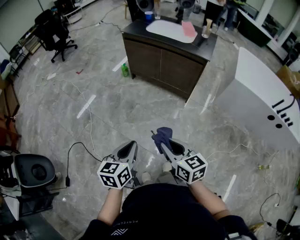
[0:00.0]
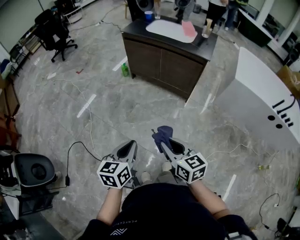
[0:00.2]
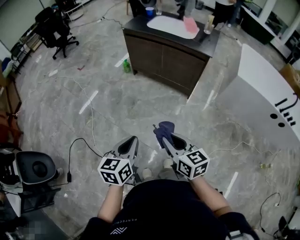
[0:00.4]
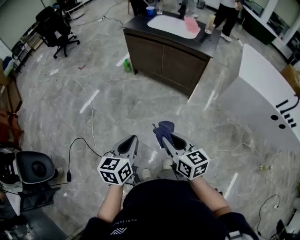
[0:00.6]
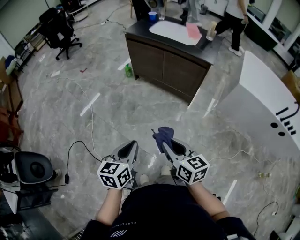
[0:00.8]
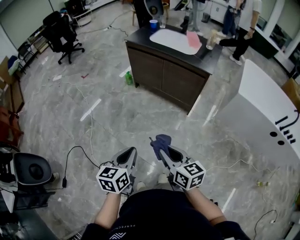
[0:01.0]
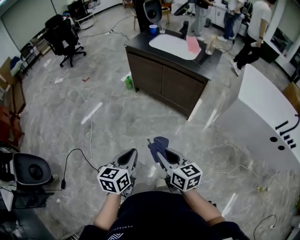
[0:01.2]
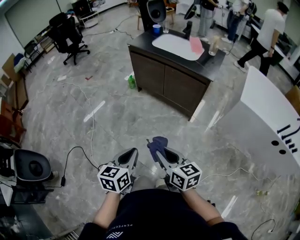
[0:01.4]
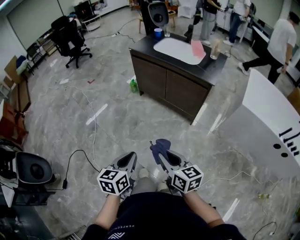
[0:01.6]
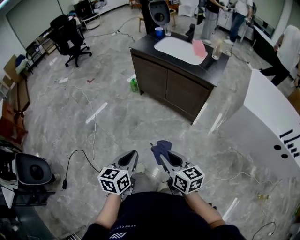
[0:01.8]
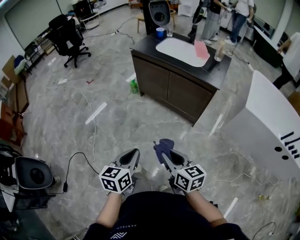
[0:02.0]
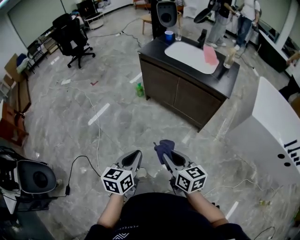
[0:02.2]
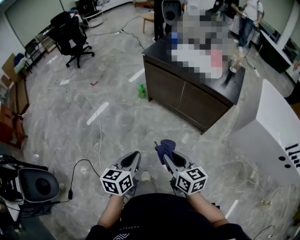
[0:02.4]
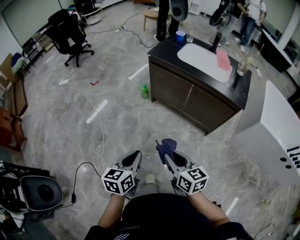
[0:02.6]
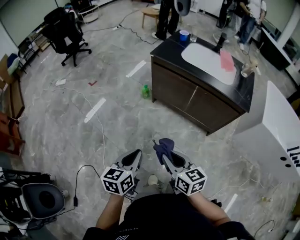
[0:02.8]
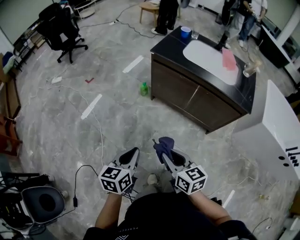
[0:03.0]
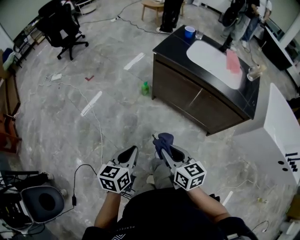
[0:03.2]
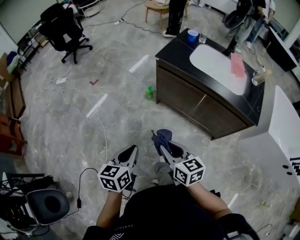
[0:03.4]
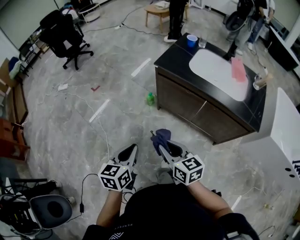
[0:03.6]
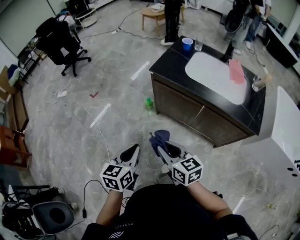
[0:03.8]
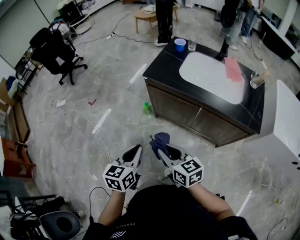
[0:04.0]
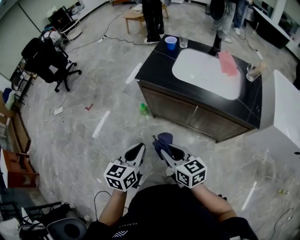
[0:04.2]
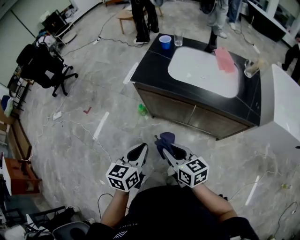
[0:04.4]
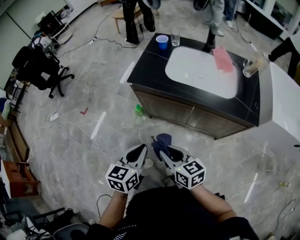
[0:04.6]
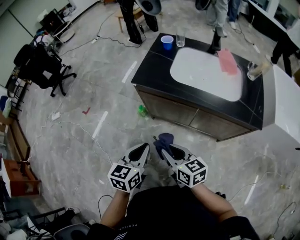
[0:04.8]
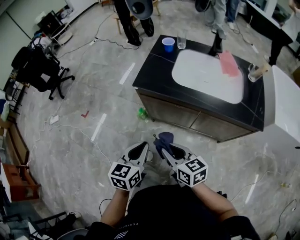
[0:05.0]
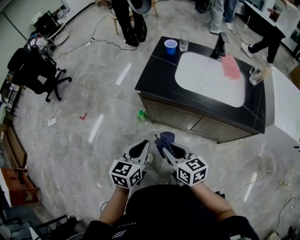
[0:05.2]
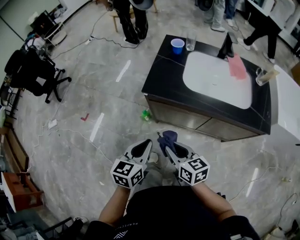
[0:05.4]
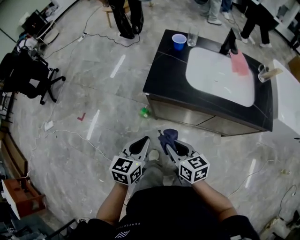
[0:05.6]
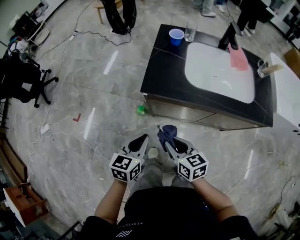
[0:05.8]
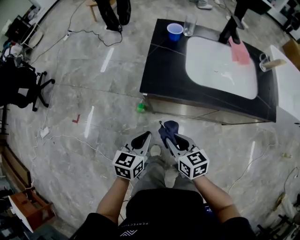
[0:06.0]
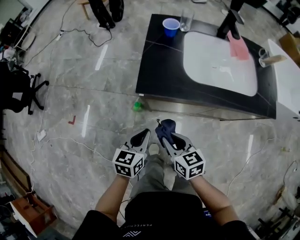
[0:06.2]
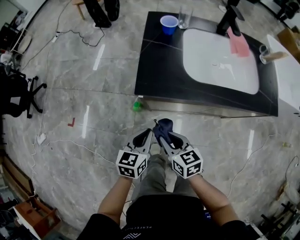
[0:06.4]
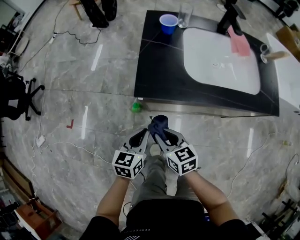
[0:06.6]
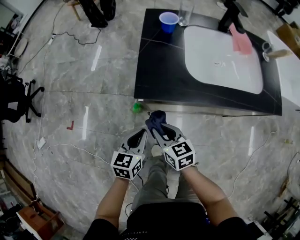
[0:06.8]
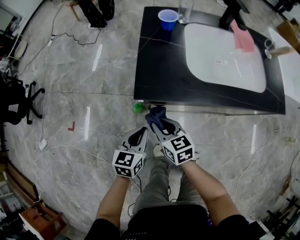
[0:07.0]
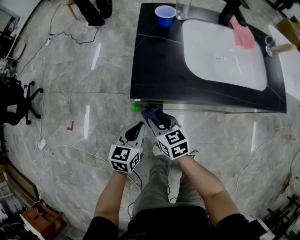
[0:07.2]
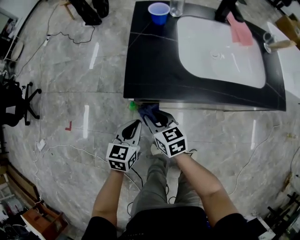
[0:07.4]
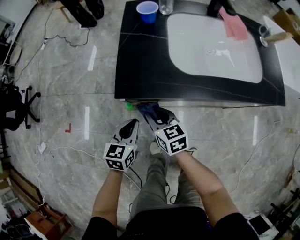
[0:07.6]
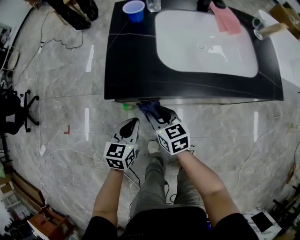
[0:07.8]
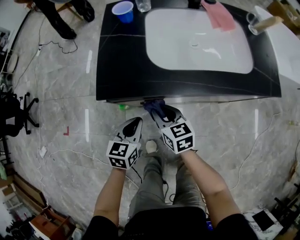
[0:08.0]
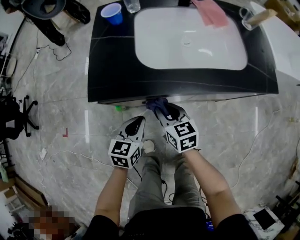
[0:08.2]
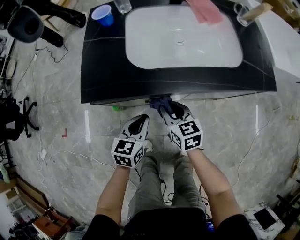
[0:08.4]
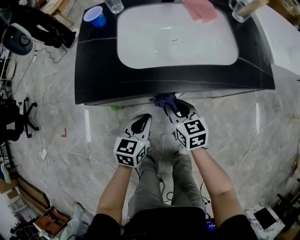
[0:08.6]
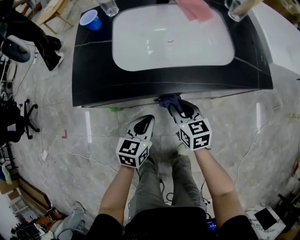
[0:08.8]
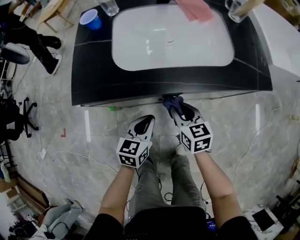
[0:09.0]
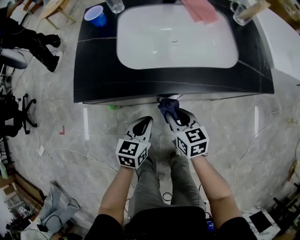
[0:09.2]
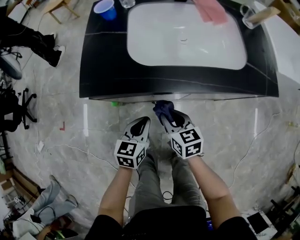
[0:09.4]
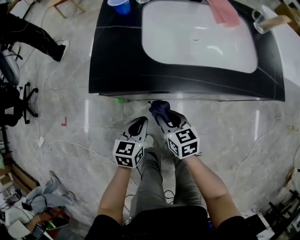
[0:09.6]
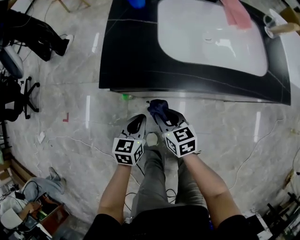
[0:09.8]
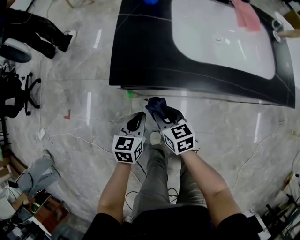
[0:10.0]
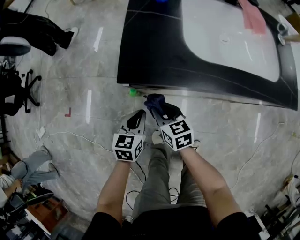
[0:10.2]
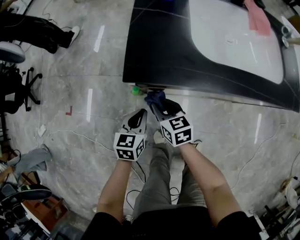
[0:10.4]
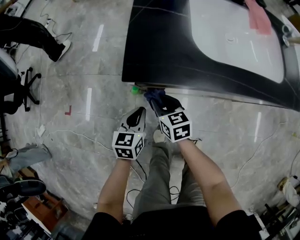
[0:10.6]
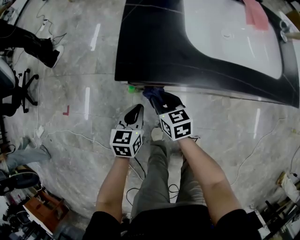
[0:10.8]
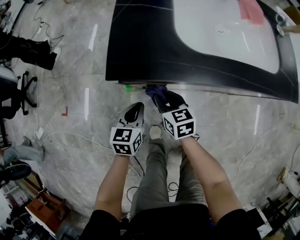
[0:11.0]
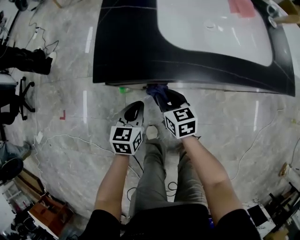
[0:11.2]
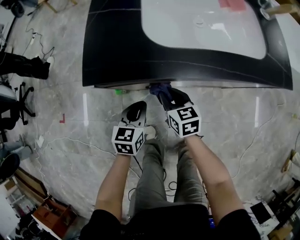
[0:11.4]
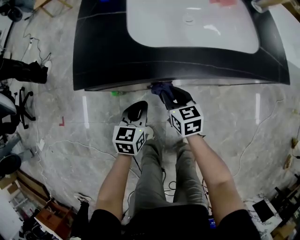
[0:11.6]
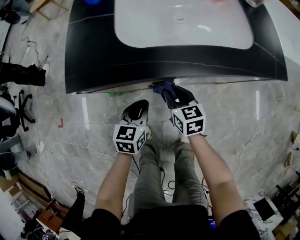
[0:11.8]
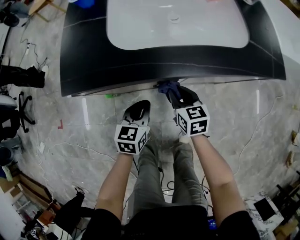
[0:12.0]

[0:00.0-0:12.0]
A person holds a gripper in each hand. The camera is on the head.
0:00.0 to 0:01.6: The left gripper moves to the right and forward, roughly 10 cm. Meanwhile the right gripper goes about 10 cm forward and to the right.
0:01.6 to 0:03.0: The grippers both shift forward and to the left by roughly 35 cm.
0:03.0 to 0:04.4: The left gripper moves forward and to the right, about 25 cm, while the right gripper shifts roughly 20 cm forward.
0:04.4 to 0:06.0: Both grippers move forward, to the left and downward, approximately 25 cm.
0:06.0 to 0:07.6: The left gripper is displaced downward and forward by some 15 cm, while the right gripper travels forward and downward by some 15 cm.
0:07.6 to 0:09.0: The two grippers go some 25 cm to the right.
0:09.0 to 0:10.4: The grippers both shift to the left by about 25 cm.
0:10.4 to 0:12.0: Both grippers travel together to the right, approximately 25 cm.

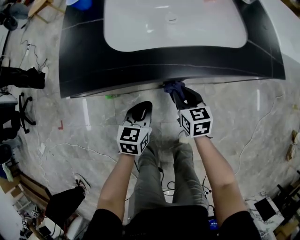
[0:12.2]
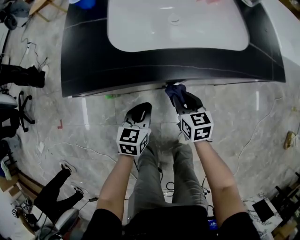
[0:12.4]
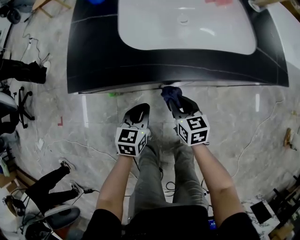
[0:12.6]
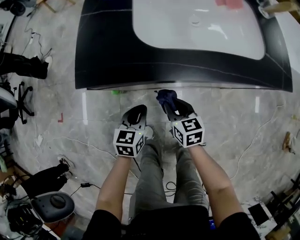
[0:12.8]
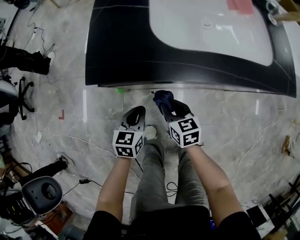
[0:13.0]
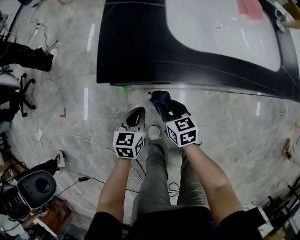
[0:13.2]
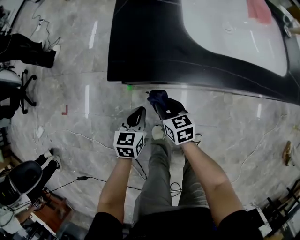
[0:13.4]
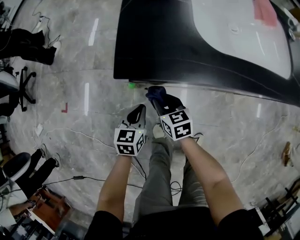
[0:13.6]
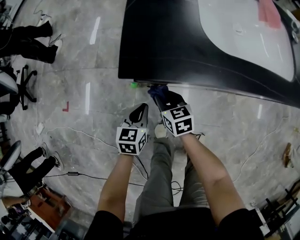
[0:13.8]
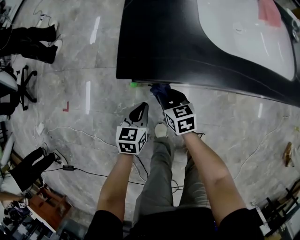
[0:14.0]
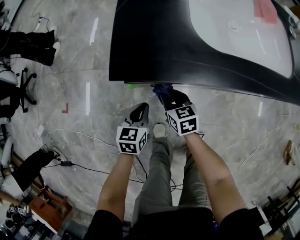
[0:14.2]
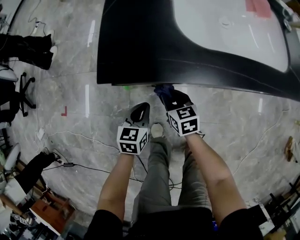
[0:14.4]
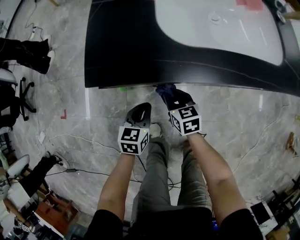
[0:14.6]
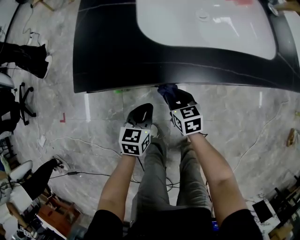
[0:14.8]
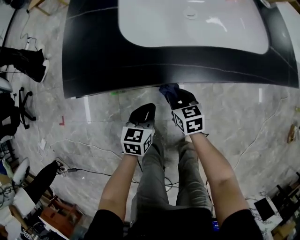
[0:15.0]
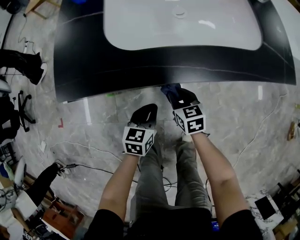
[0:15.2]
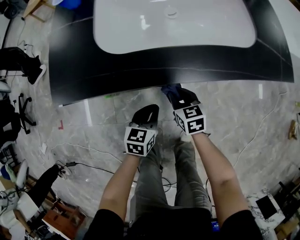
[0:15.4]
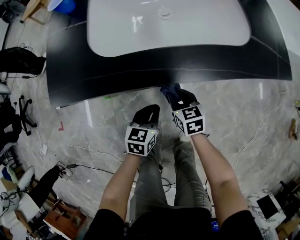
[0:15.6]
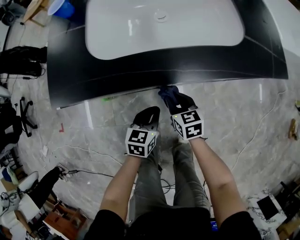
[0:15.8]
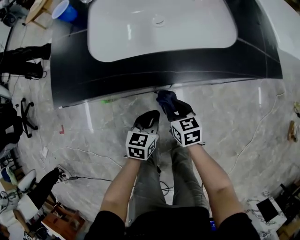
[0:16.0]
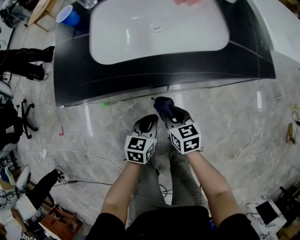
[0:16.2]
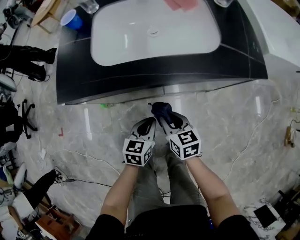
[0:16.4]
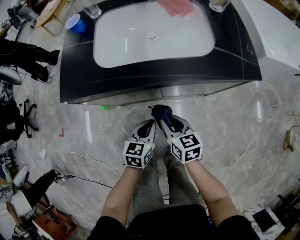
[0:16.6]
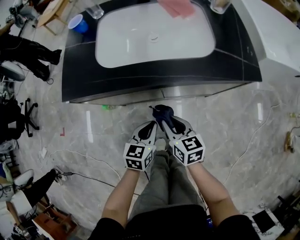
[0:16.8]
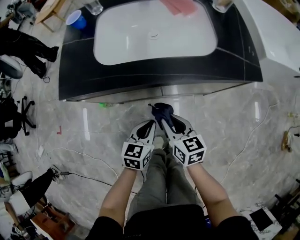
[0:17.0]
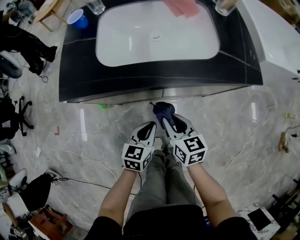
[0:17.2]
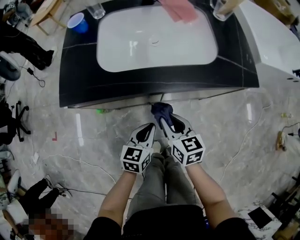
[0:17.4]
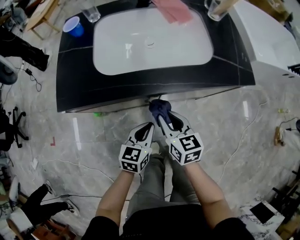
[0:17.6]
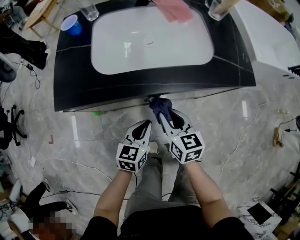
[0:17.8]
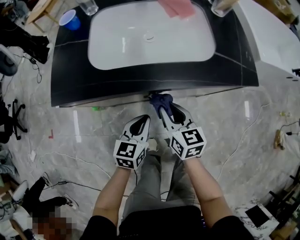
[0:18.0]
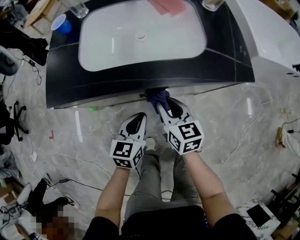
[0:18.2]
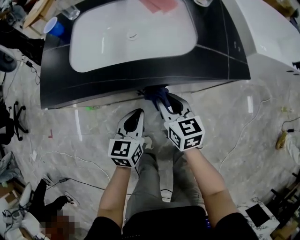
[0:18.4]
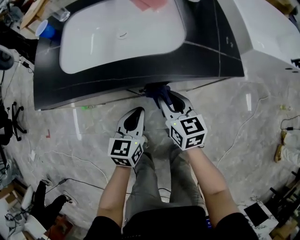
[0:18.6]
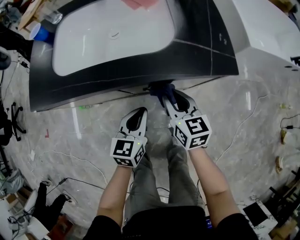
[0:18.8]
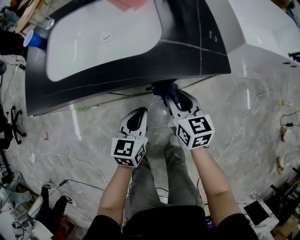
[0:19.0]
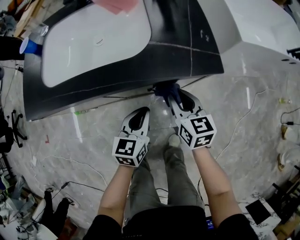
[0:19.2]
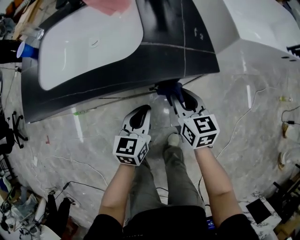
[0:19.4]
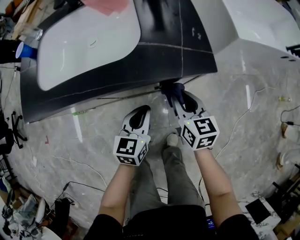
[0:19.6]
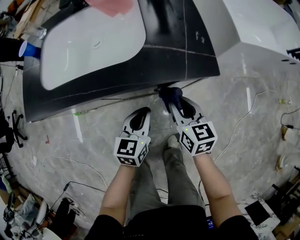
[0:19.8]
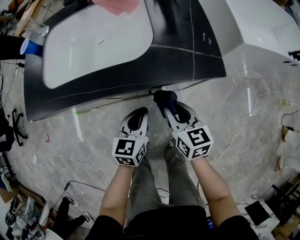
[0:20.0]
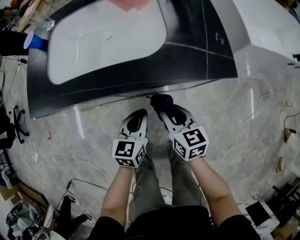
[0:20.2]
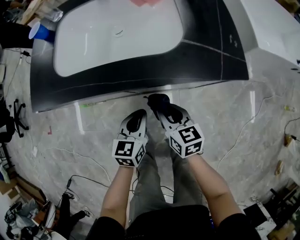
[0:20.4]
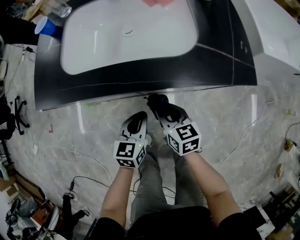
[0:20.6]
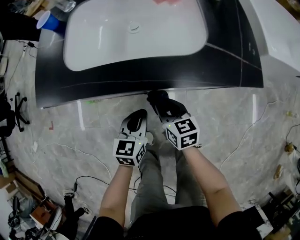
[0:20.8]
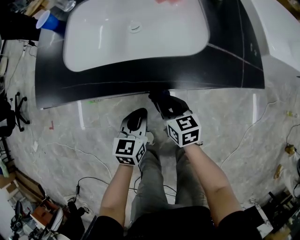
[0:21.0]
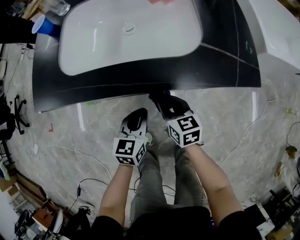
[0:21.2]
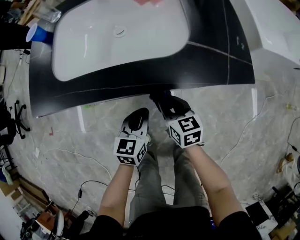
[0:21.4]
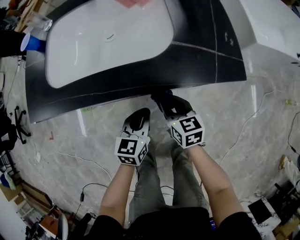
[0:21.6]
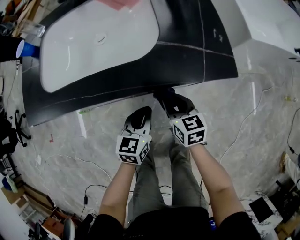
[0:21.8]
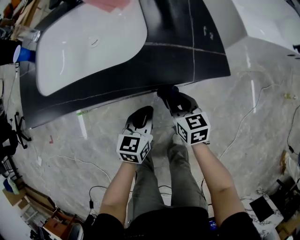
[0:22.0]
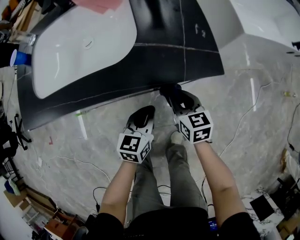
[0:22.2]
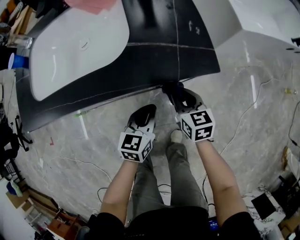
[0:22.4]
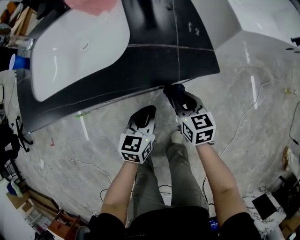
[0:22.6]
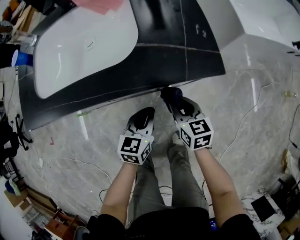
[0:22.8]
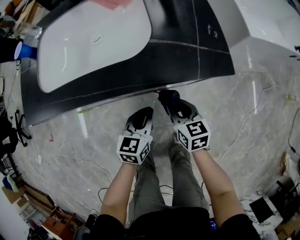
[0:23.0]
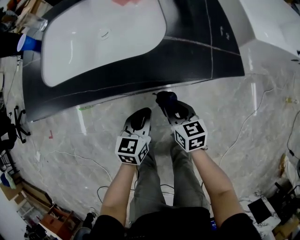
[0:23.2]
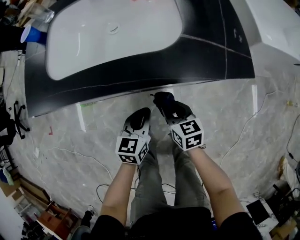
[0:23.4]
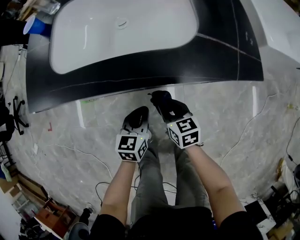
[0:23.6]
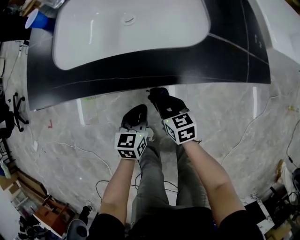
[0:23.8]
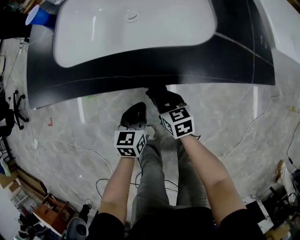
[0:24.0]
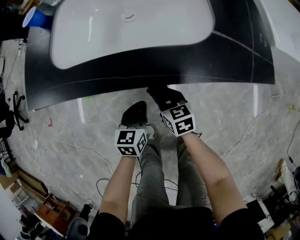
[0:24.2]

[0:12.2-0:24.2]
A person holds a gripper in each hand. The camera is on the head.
0:12.2 to 0:13.8: The grippers both shift to the left by about 25 cm.
0:13.8 to 0:15.2: Both grippers move to the right, roughly 25 cm.
0:15.2 to 0:16.6: The right gripper is displaced upward, backward and to the right by roughly 15 cm, while the left gripper moves to the right and upward, approximately 10 cm.
0:16.6 to 0:18.2: The left gripper moves some 5 cm, while the right gripper is displaced forward by roughly 5 cm.
0:18.2 to 0:19.8: Both grippers move to the right, roughly 20 cm.
0:19.8 to 0:21.2: The grippers both shift to the left by some 15 cm.
0:21.2 to 0:22.6: The two grippers go about 20 cm to the right.
0:22.6 to 0:24.2: Both grippers move to the left, some 20 cm.
